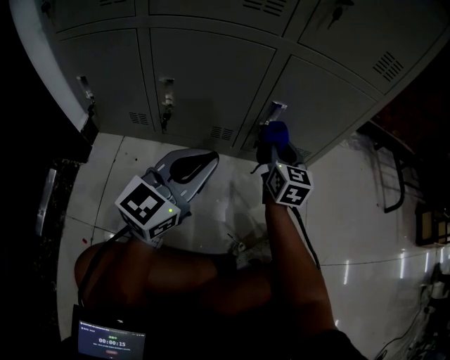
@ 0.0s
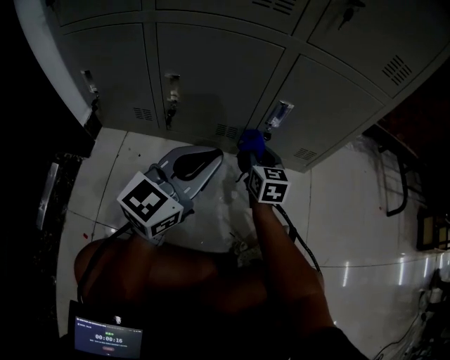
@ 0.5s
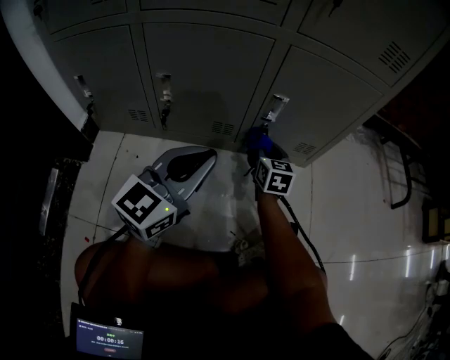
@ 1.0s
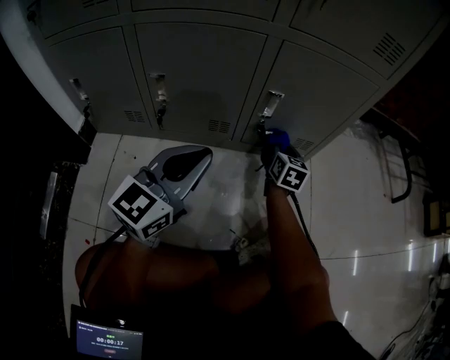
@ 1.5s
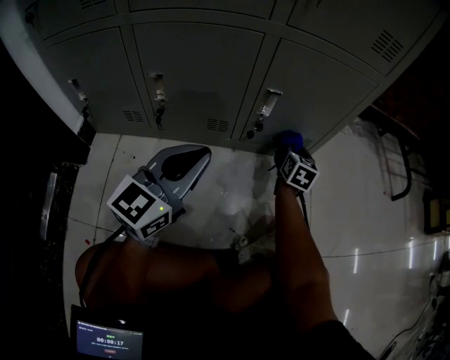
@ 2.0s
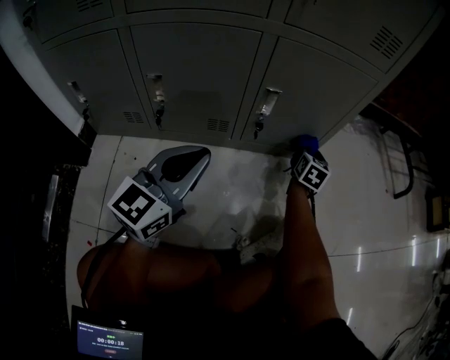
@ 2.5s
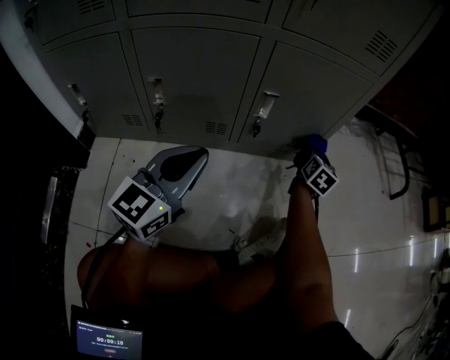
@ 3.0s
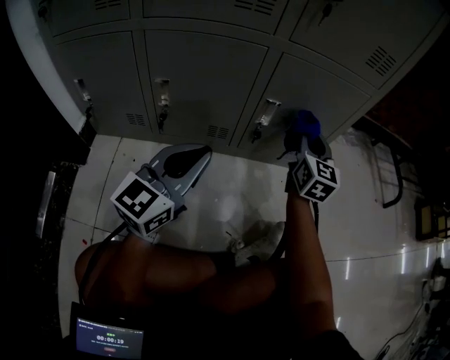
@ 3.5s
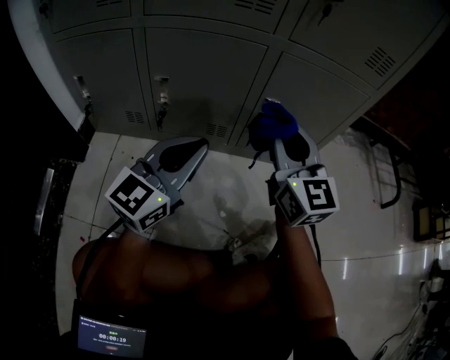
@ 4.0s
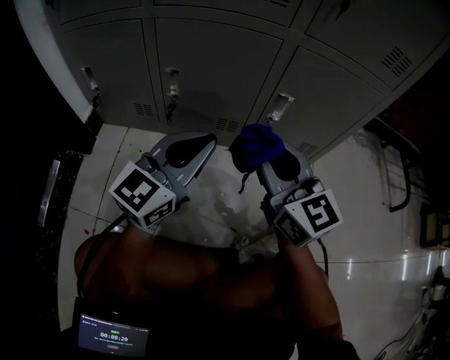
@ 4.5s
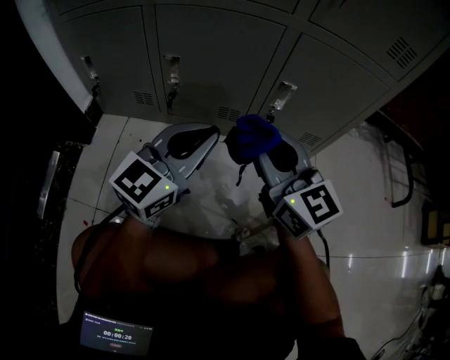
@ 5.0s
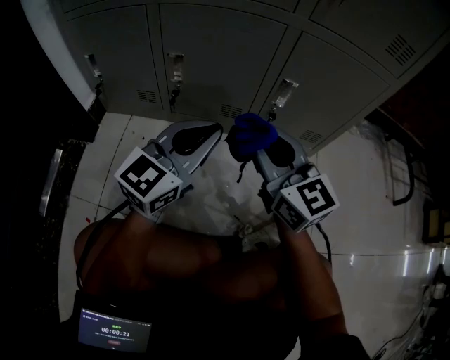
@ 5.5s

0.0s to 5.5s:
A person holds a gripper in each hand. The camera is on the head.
0.0s to 2.0s: The right gripper heads downward, to the right and forward, covering some 15 cm, and rotates about 20 degrees.
2.0s to 3.5s: The right gripper shifts about 15 cm upward, and swivels approximately 20 degrees.
3.5s to 5.5s: The right gripper shifts about 25 cm to the left and backward, and rotates about 40 degrees.

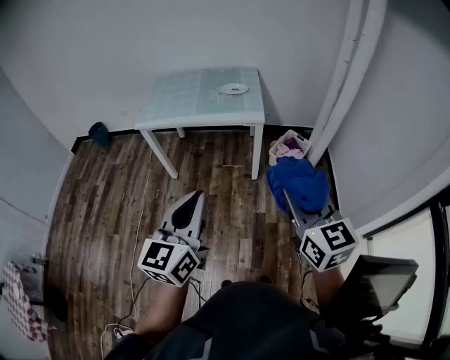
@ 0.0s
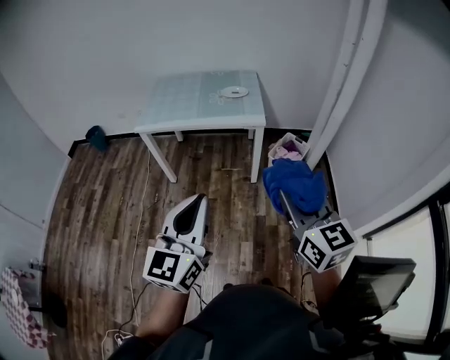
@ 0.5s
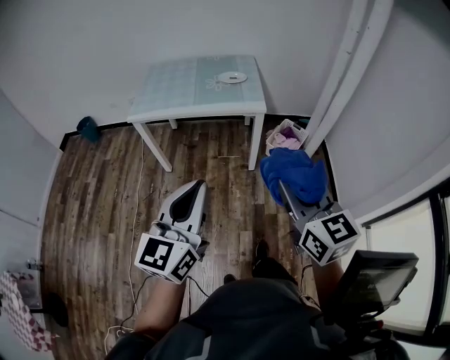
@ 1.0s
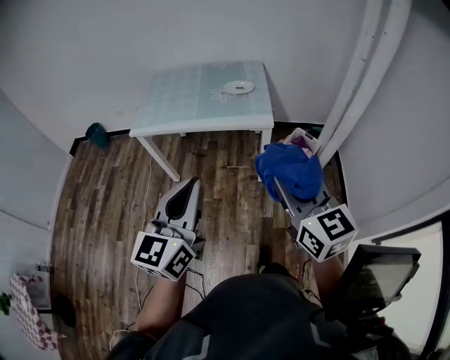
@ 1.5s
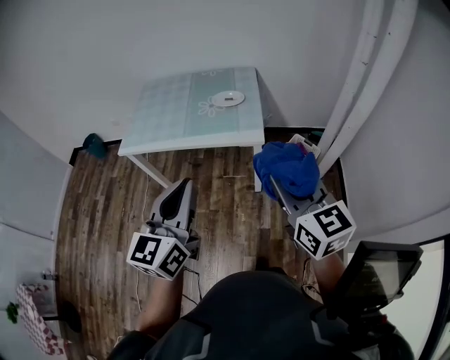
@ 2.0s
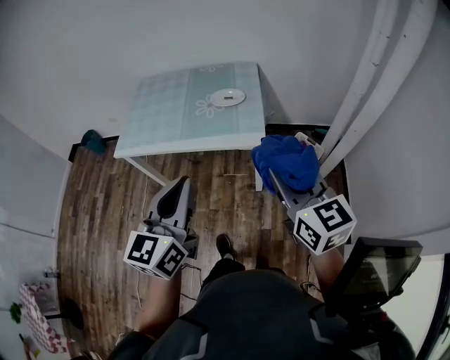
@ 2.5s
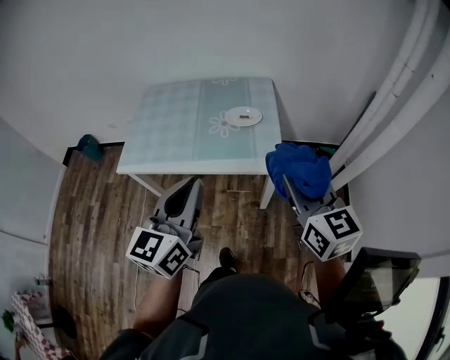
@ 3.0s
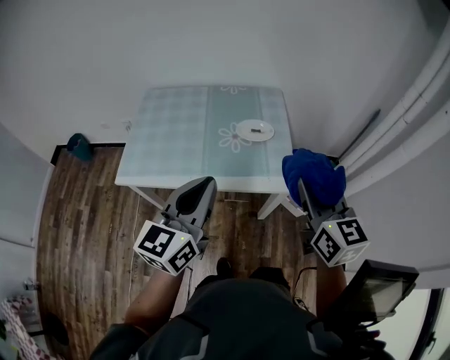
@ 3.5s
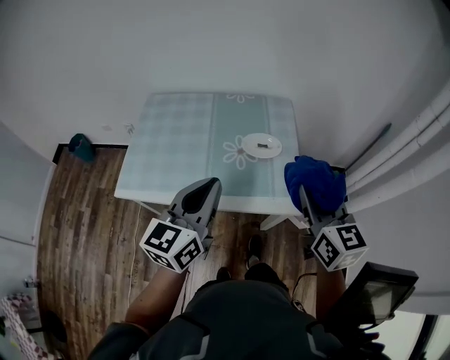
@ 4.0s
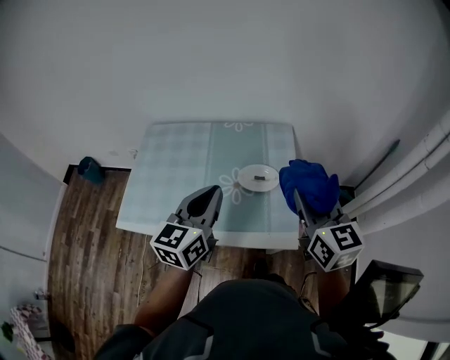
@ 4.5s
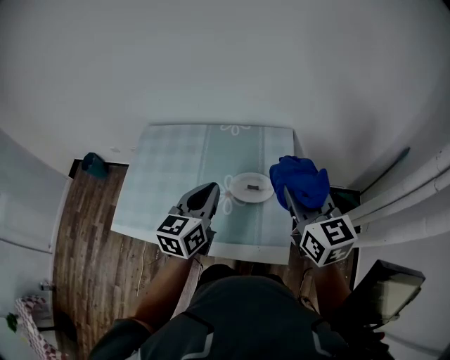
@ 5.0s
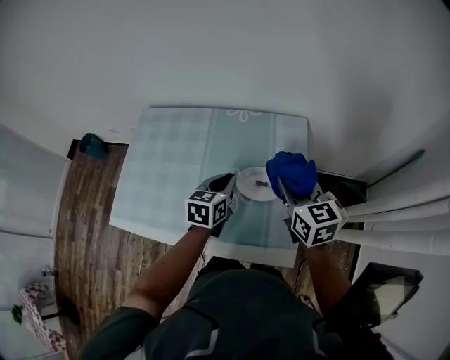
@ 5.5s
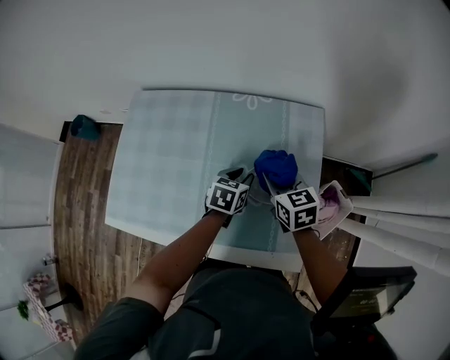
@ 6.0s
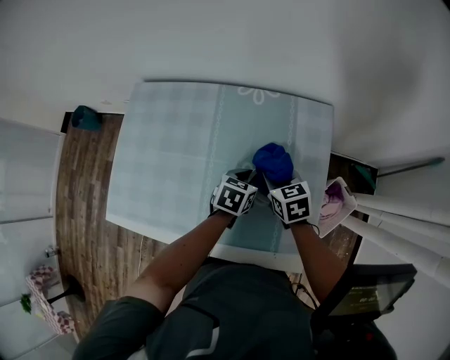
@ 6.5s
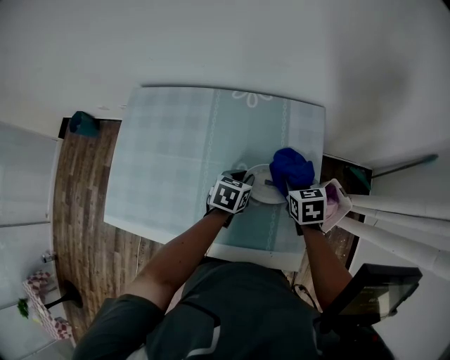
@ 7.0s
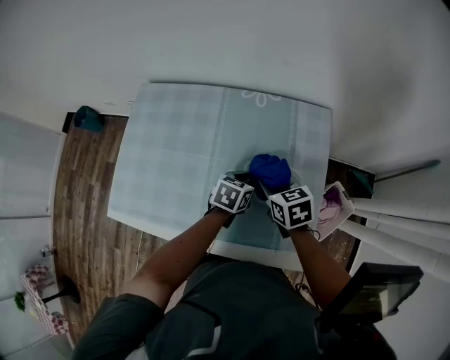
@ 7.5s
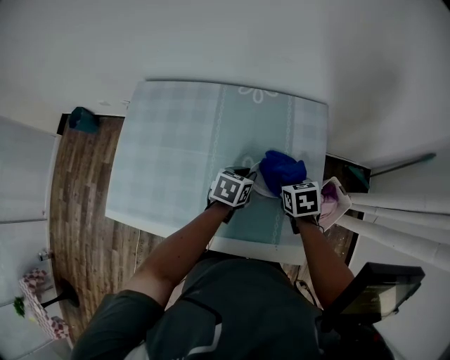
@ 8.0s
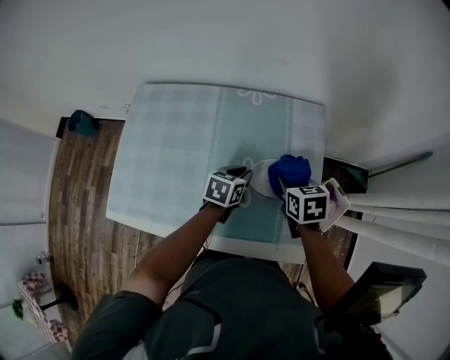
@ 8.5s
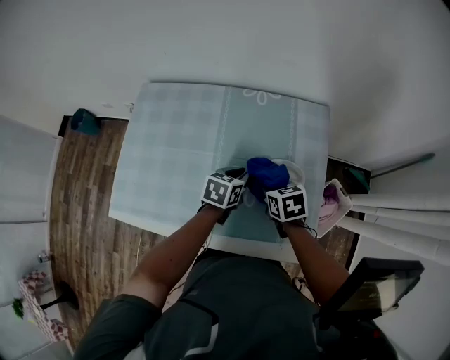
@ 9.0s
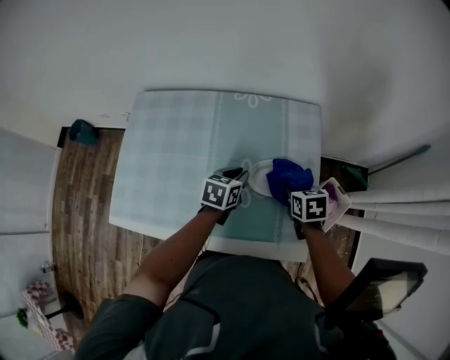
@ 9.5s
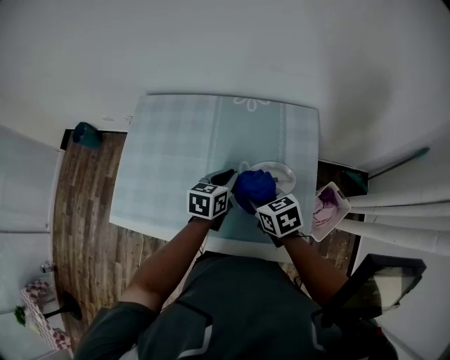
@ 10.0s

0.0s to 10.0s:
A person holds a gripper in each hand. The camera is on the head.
0.0s to 2.0s: Both grippers move forward, roughly 25 cm.
2.0s to 4.0s: Both grippers travel together forward, roughly 35 cm.
4.0s to 6.0s: The right gripper travels forward and downward by approximately 40 cm, and swivels about 30 degrees. Meanwhile the left gripper travels downward and forward by about 50 cm, angles its fingers downward, by about 40 degrees, and opens its fingers.
6.0s to 8.0s: The right gripper moves left and right over roughly 10 cm, changing direction 2 times, and rotates approximately 20 degrees.
8.0s to 10.0s: The right gripper goes left and right, approximately 10 cm each way, reversing 2 times, and swivels roughly 20 degrees, while the left gripper travels upward by about 10 cm.

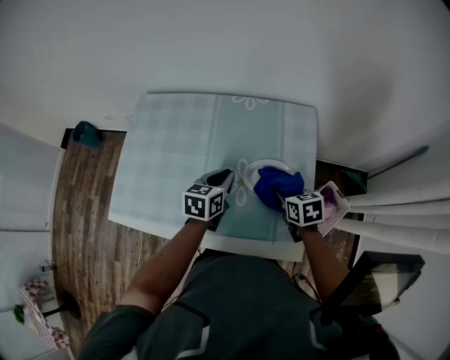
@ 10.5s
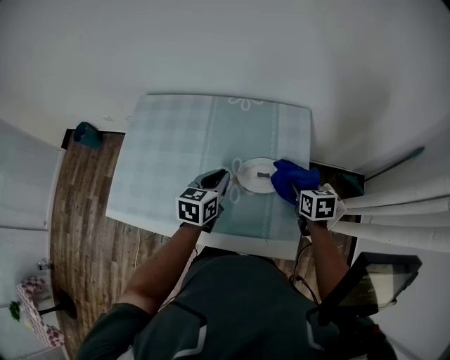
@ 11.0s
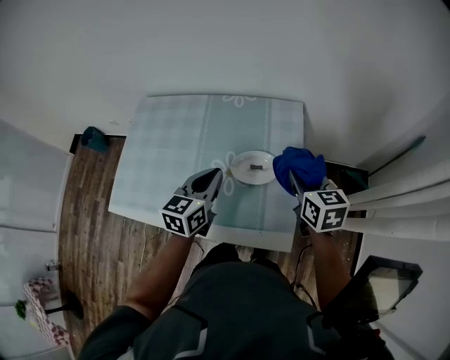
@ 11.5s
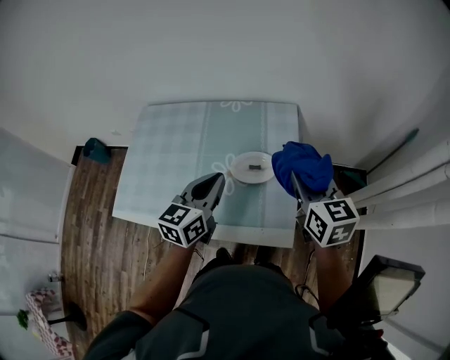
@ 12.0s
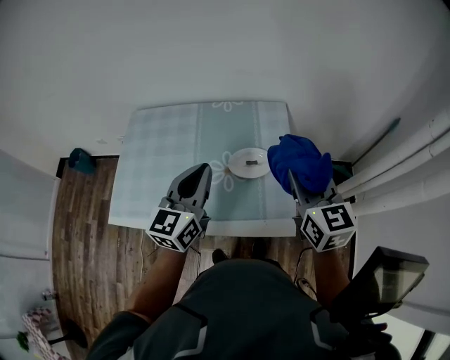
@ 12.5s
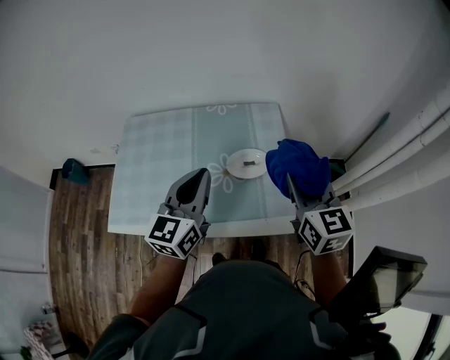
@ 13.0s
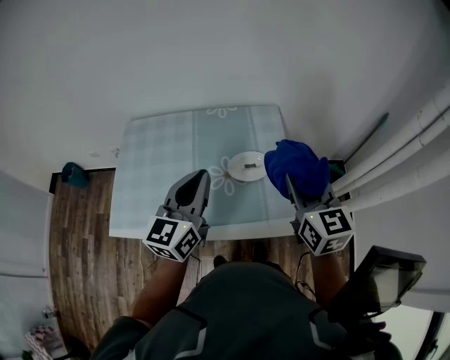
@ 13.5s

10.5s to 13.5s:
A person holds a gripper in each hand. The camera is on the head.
10.5s to 12.0s: The right gripper is displaced upward by some 20 cm, and tips its fingers upward by some 30 degrees, while the left gripper moves upward and backward, about 20 cm, and changes its angle by roughly 20 degrees.
12.0s to 13.5s: The right gripper shifts about 10 cm backward and upward; the left gripper travels upward and to the left by approximately 10 cm.

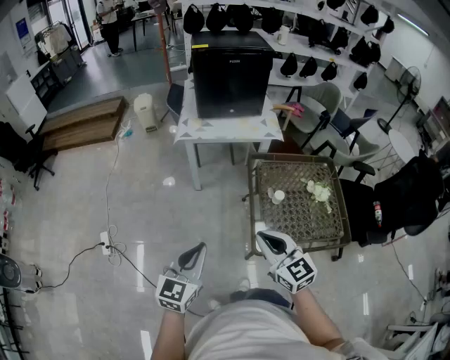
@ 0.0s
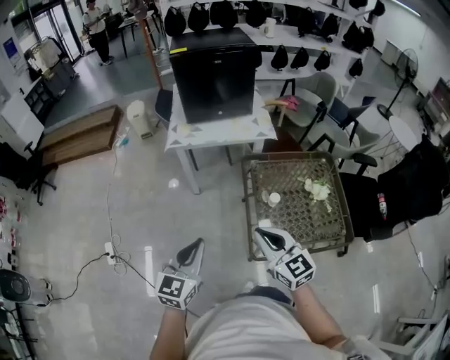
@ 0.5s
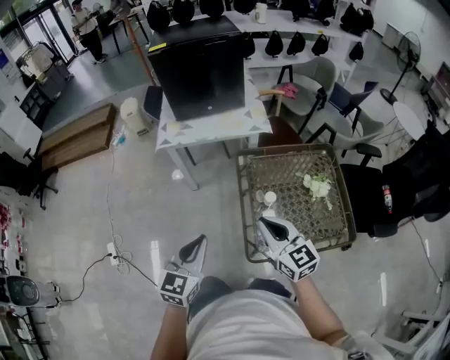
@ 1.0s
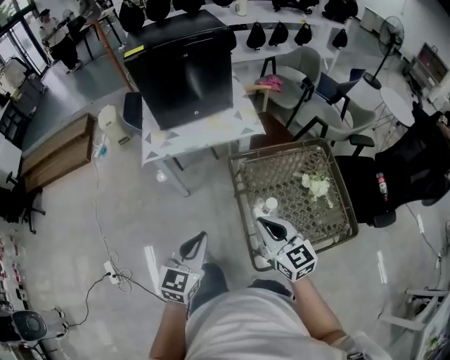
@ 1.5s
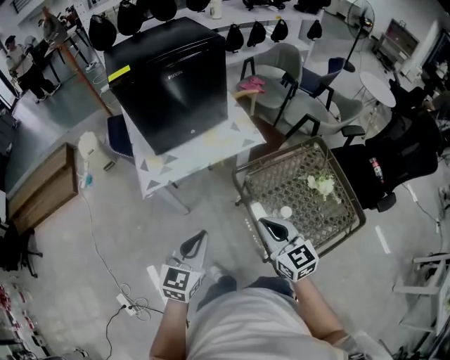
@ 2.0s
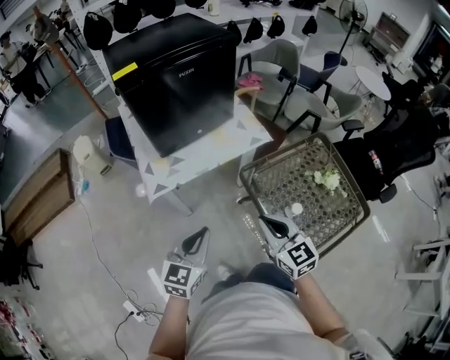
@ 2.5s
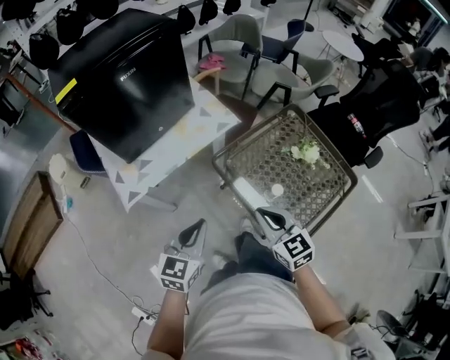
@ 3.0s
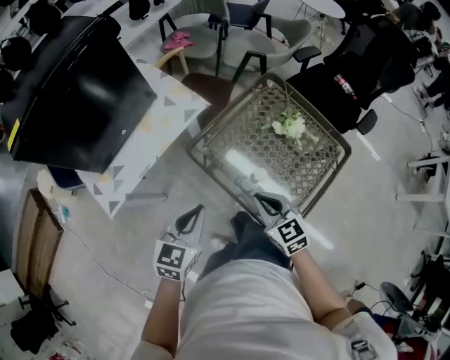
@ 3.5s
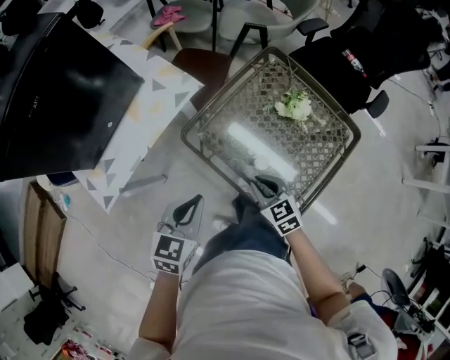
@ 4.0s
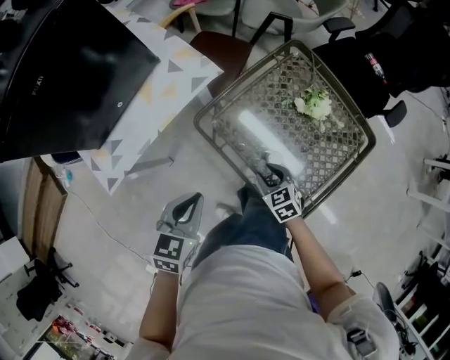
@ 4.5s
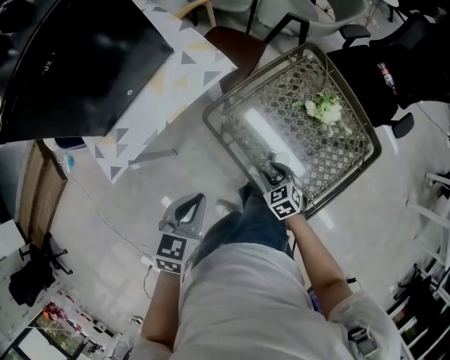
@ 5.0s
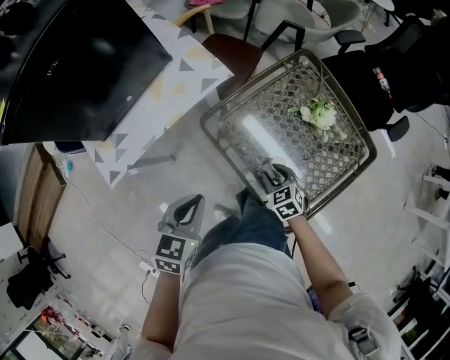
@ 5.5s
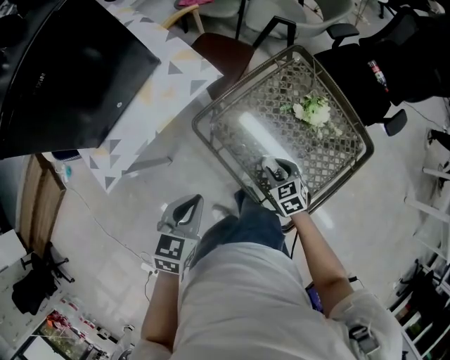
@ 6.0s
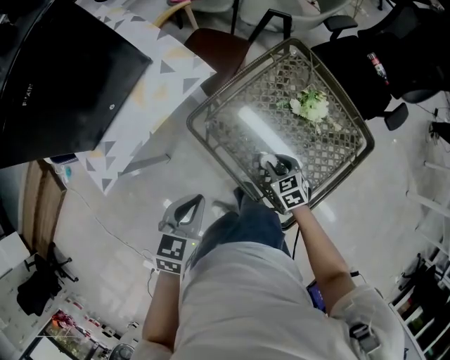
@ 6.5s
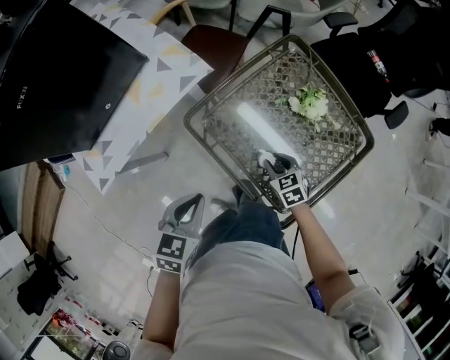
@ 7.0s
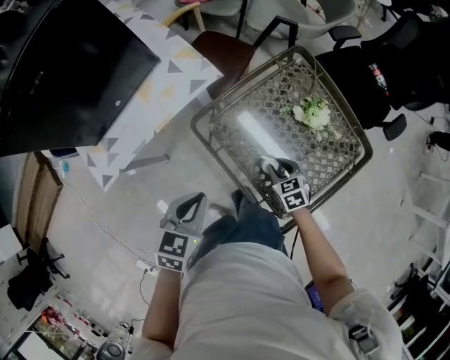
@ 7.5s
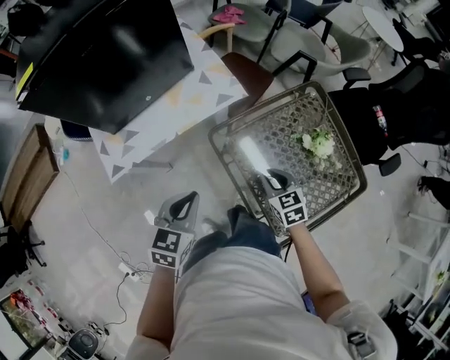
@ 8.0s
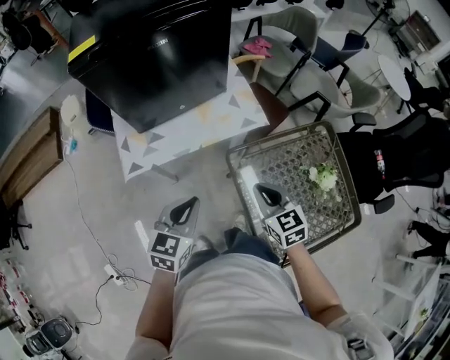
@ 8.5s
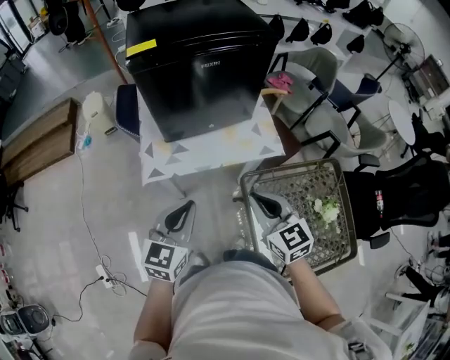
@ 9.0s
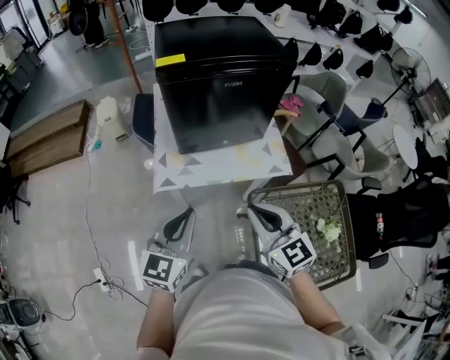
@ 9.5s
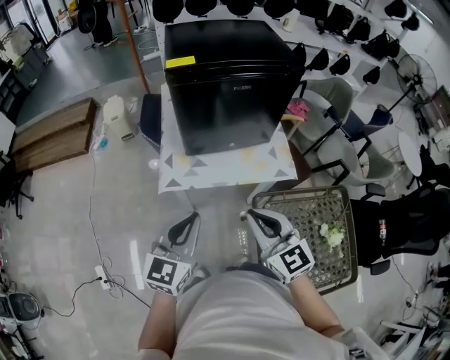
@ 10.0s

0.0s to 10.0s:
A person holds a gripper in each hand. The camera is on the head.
0.0s to 2.0s: The grippers both shift forward by roughly 30 cm. The left gripper rotates about 20 degrees. Meanwhile the right gripper turns by approximately 20 degrees.
2.0s to 4.0s: The right gripper shifts about 25 cm downward and to the right, and rotates about 30 degrees; the left gripper is displaced forward, to the right and downward by about 20 cm, and swivels roughly 30 degrees.
4.0s to 6.0s: The right gripper heads downward, covering approximately 10 cm, and opens.
6.0s to 8.0s: The left gripper travels to the left by some 5 cm; the right gripper moves upward and to the left, roughly 10 cm.
8.0s to 10.0s: The right gripper shifts roughly 30 cm upward, and points its fingers roughly 30 degrees further upward; the left gripper shifts roughly 15 cm upward, and swivels some 40 degrees.
